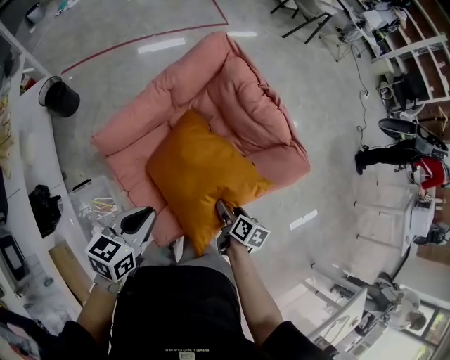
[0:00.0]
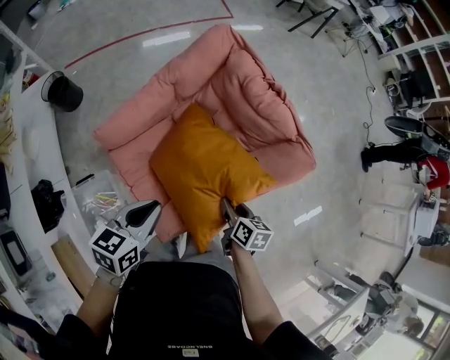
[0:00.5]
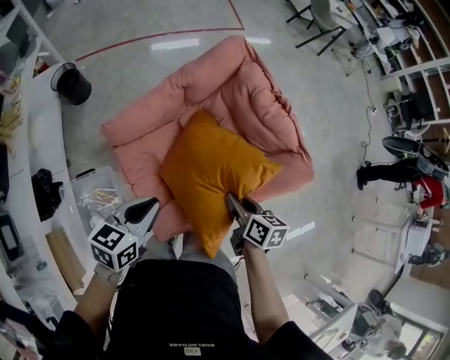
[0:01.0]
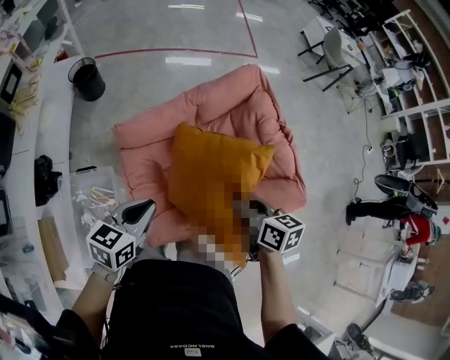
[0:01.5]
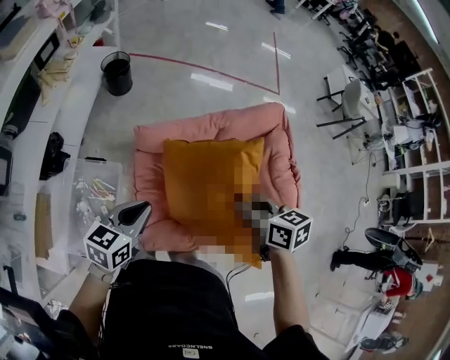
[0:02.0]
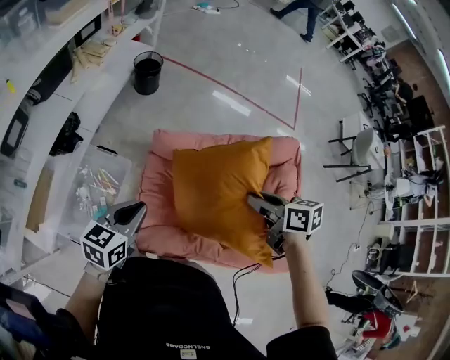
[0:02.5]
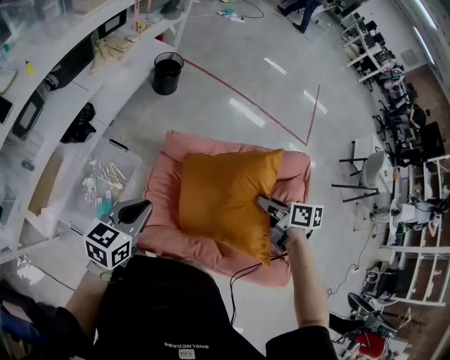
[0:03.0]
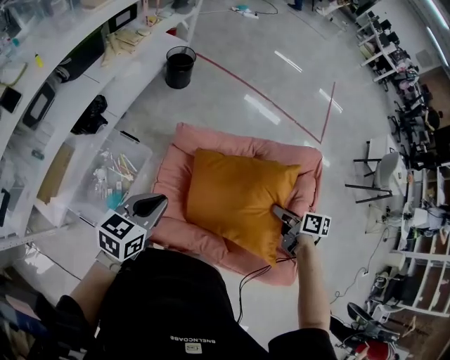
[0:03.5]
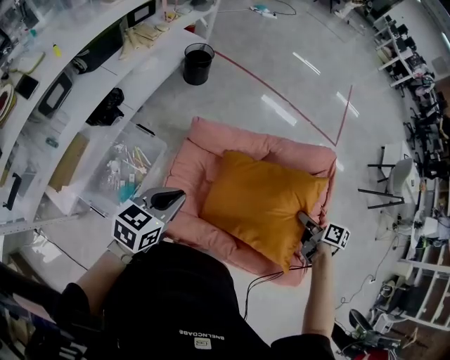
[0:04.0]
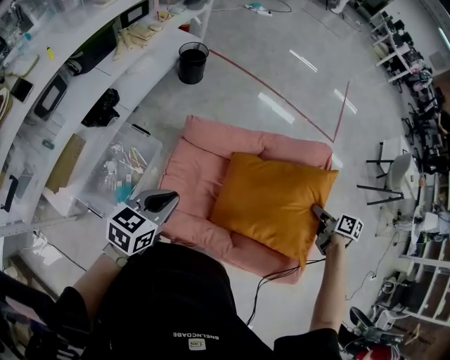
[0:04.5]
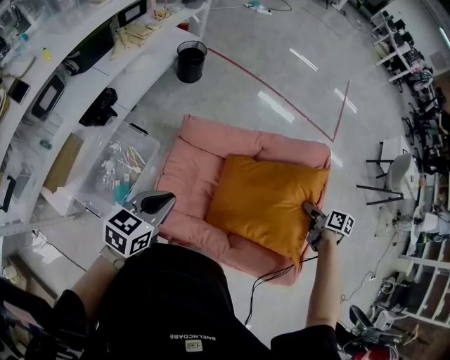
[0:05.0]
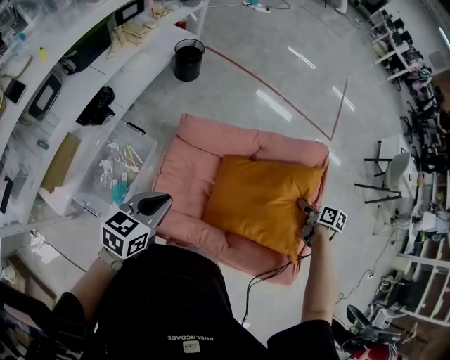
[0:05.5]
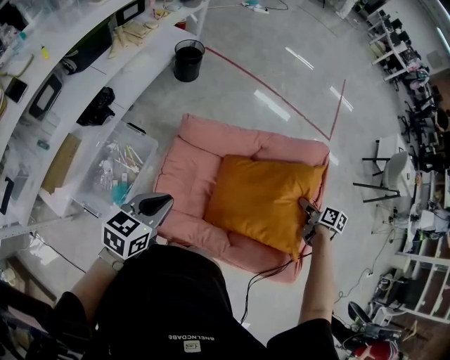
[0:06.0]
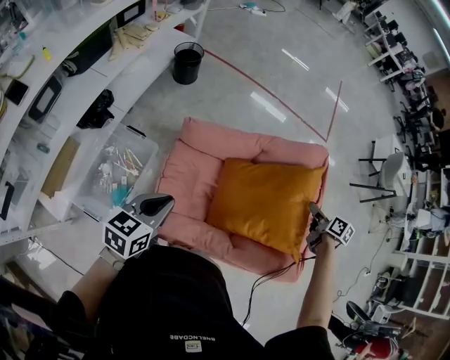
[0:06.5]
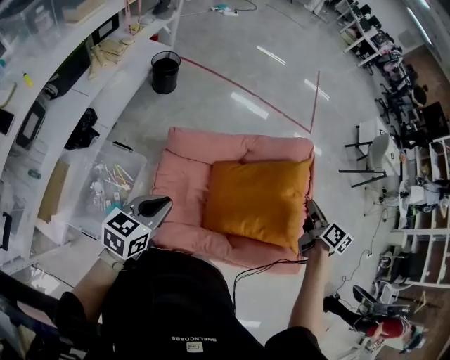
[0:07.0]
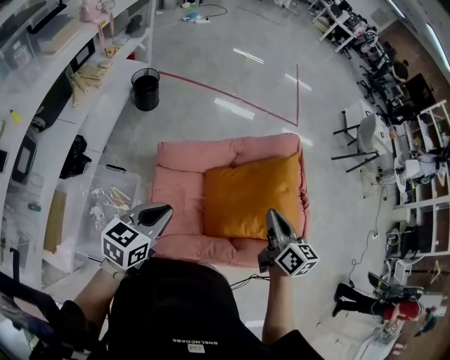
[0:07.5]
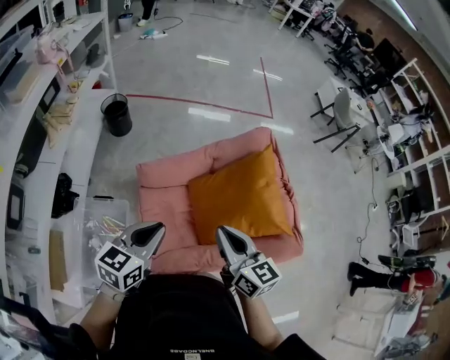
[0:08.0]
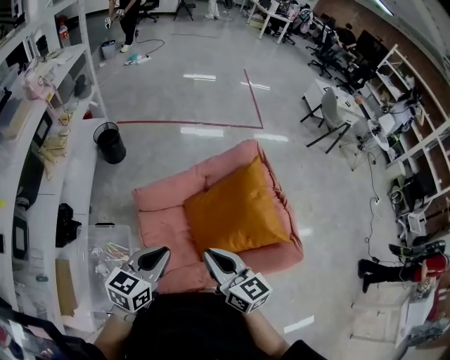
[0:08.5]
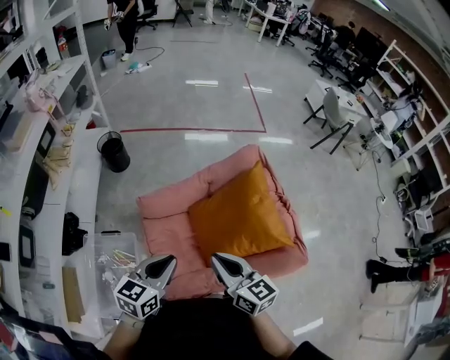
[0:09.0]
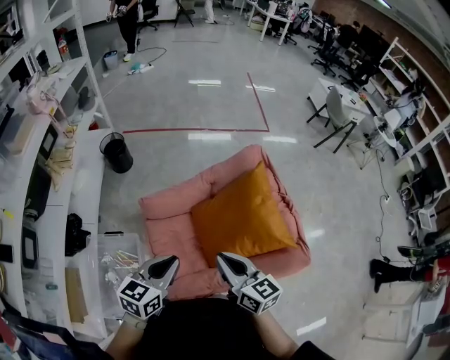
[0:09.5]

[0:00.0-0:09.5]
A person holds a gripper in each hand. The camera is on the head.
0:00.0 to 0:02.0: The left gripper changes place by approximately 10 cm, and changes its angle by roughly 30 degrees; the right gripper heads upward, covering approximately 25 cm, rolls counterclockwise, seen from behind, by about 50 degrees, and closes.
0:02.0 to 0:04.0: The right gripper shifts roughly 25 cm to the right and downward, and changes its angle by approximately 20 degrees.
0:04.0 to 0:05.5: The right gripper shifts roughly 5 cm to the right.
0:05.5 to 0:07.5: The right gripper is displaced to the left, upward and backward by about 30 cm, rotates roughly 40 degrees, and opens, then closes again; the left gripper shifts by roughly 5 cm.
0:07.5 to 0:09.5: The left gripper travels to the right by roughly 10 cm. Meanwhile the right gripper moves backward and to the left, some 10 cm.

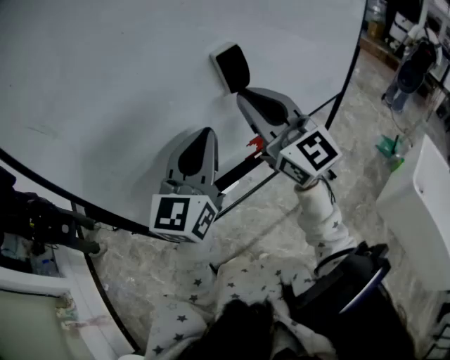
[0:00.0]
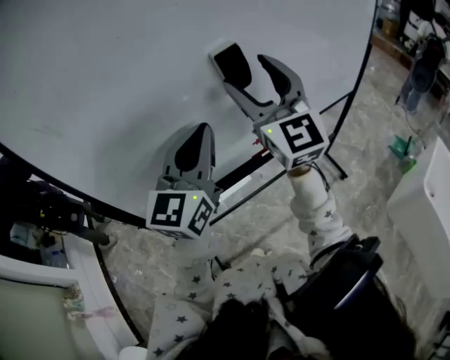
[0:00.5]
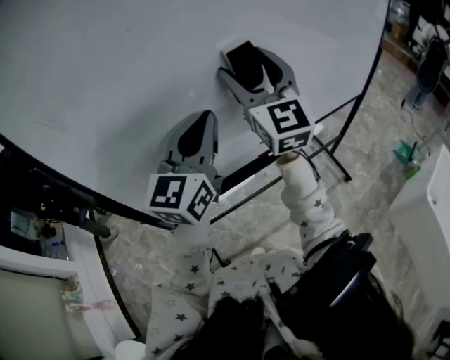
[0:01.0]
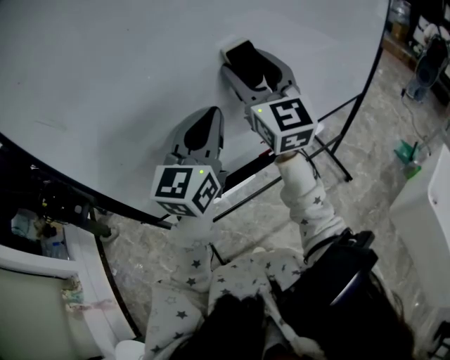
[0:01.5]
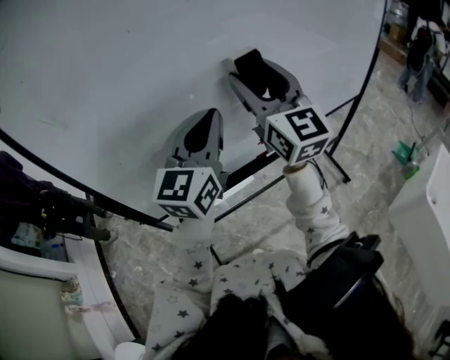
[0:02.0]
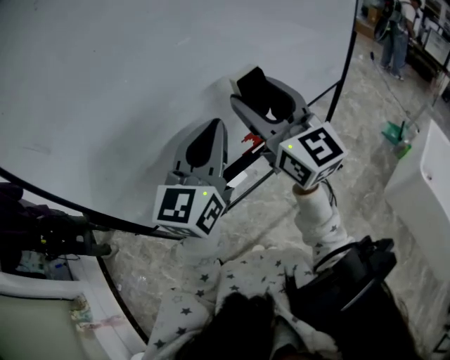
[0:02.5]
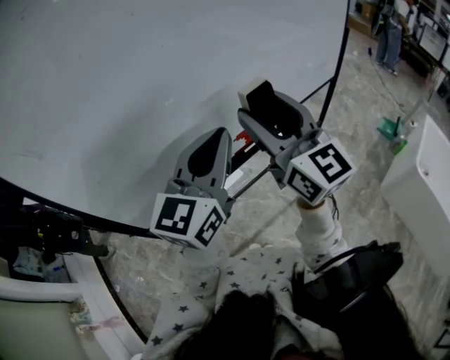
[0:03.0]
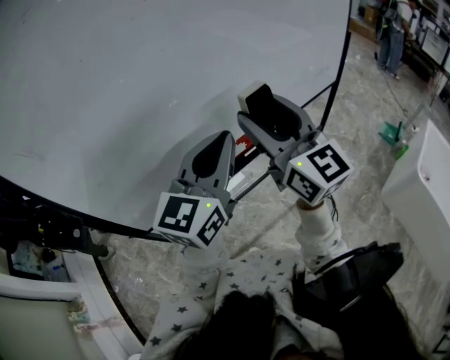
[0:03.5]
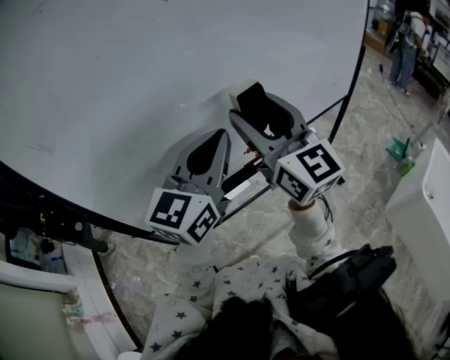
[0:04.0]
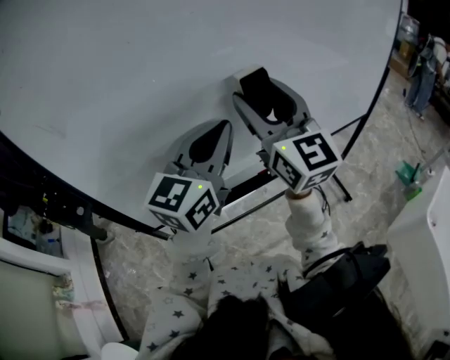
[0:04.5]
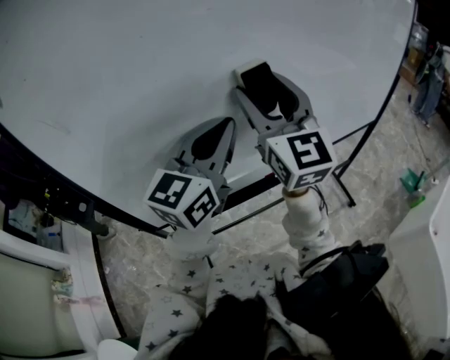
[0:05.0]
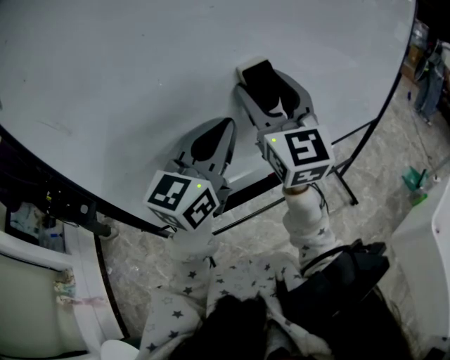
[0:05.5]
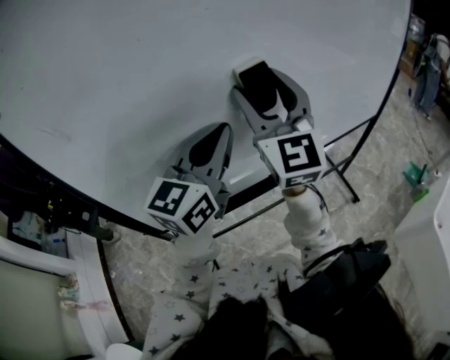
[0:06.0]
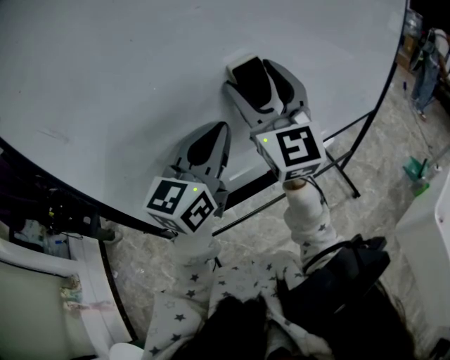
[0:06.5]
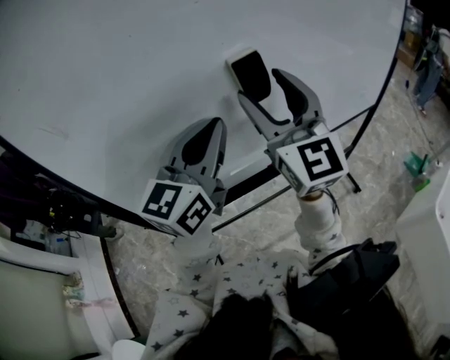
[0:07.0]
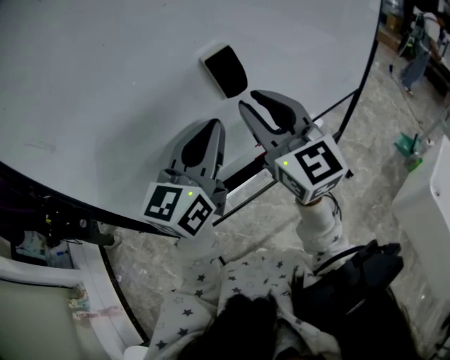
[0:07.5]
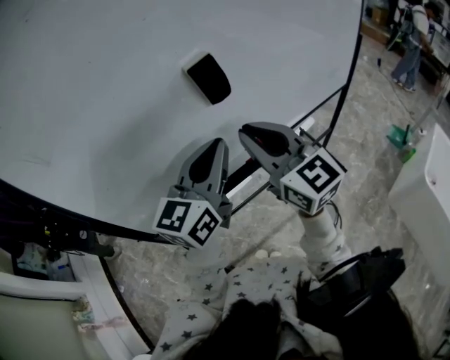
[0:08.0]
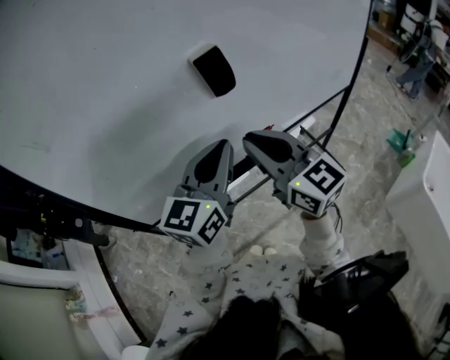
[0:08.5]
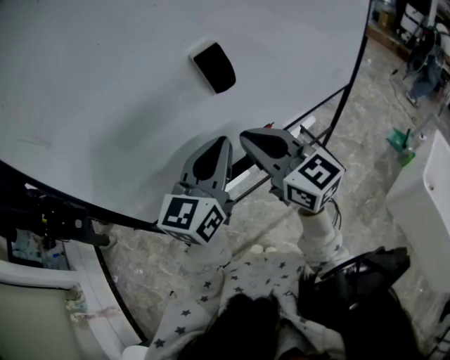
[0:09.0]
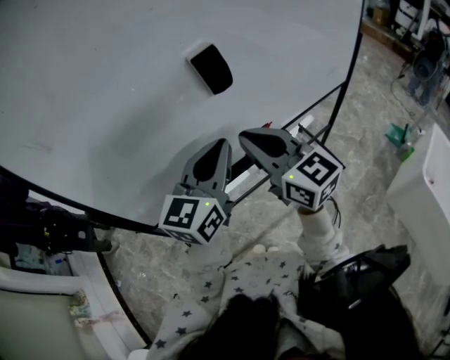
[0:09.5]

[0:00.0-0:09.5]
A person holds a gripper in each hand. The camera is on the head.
0:00.0 to 0:02.0: The right gripper opens its fingers.
0:02.0 to 0:04.0: The left gripper moves to the right, some 5 cm.
0:04.0 to 0:05.5: The left gripper shifts some 10 cm to the left and forward. The right gripper goes roughly 10 cm forward and to the left.
0:05.5 to 0:07.5: The right gripper ends up roughly 5 cm from where it was, and closes up.
0:07.5 to 0:09.5: Both grippers travel together downward, roughly 5 cm.

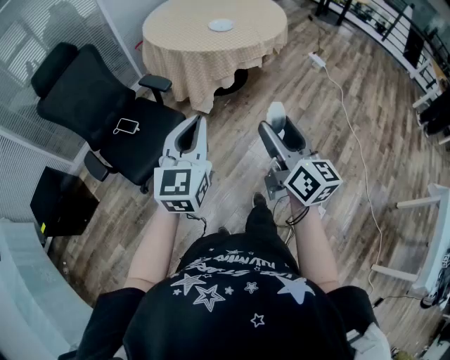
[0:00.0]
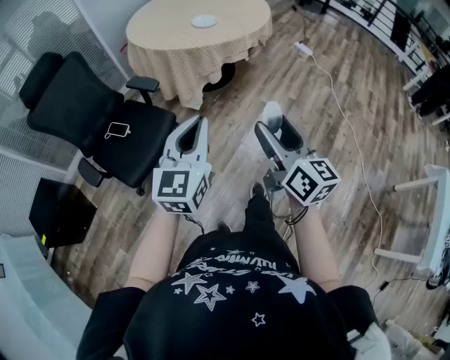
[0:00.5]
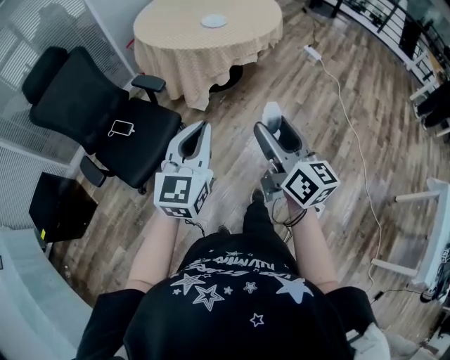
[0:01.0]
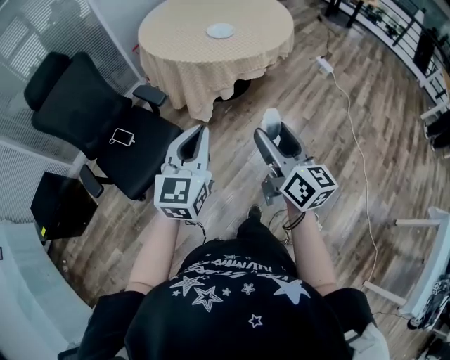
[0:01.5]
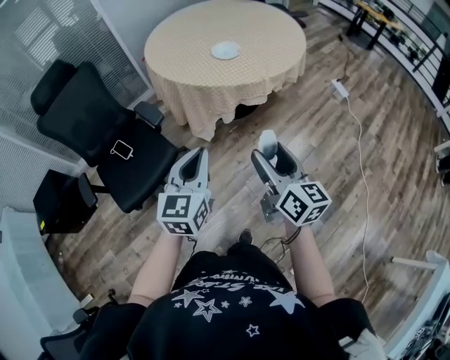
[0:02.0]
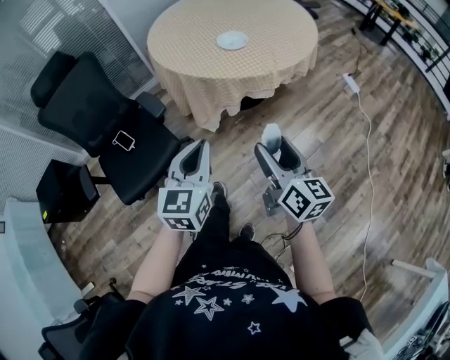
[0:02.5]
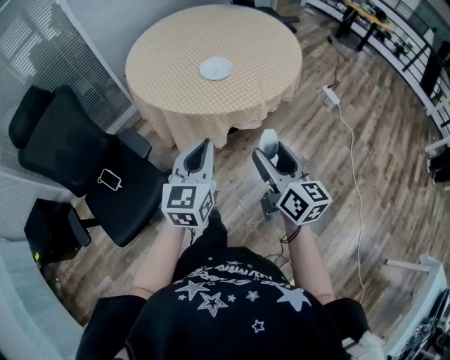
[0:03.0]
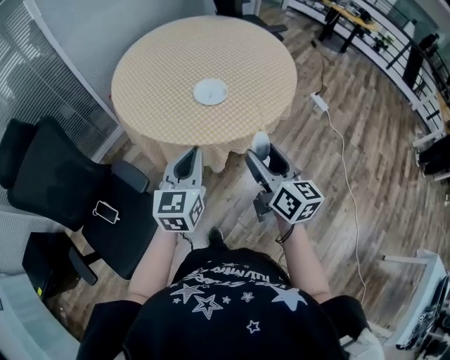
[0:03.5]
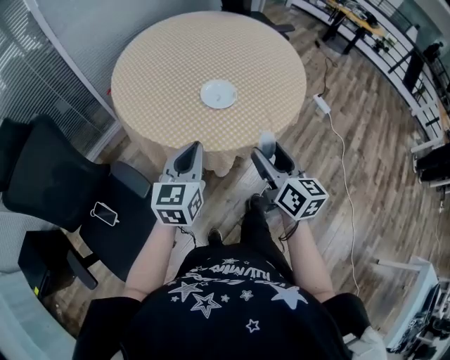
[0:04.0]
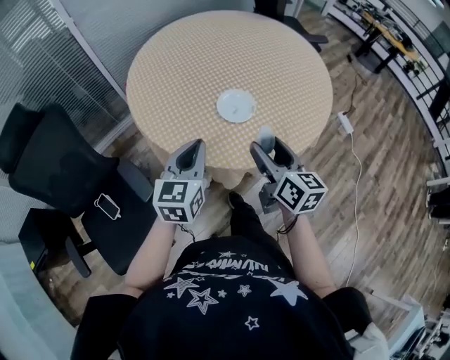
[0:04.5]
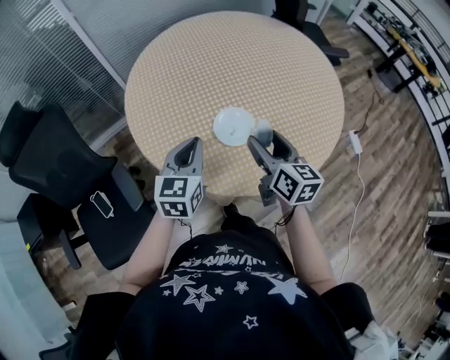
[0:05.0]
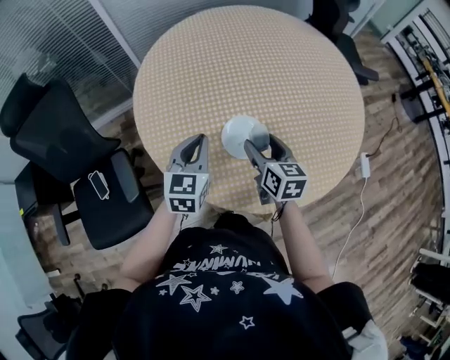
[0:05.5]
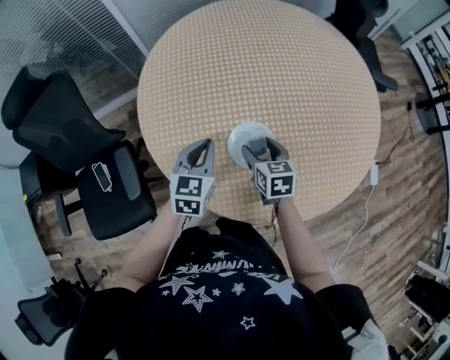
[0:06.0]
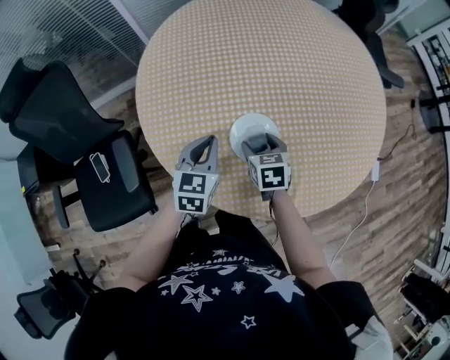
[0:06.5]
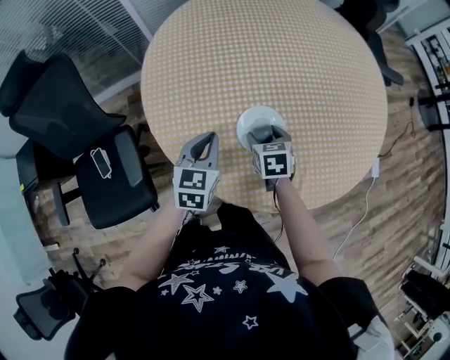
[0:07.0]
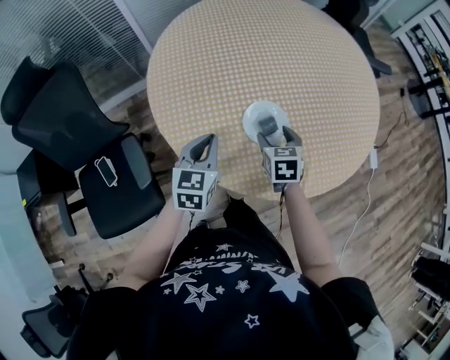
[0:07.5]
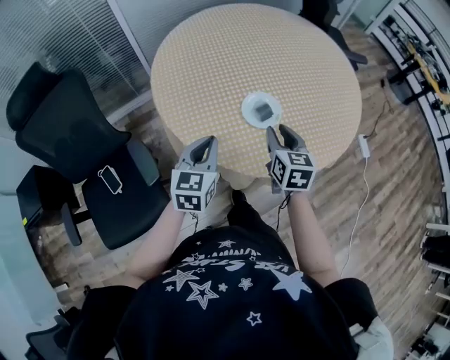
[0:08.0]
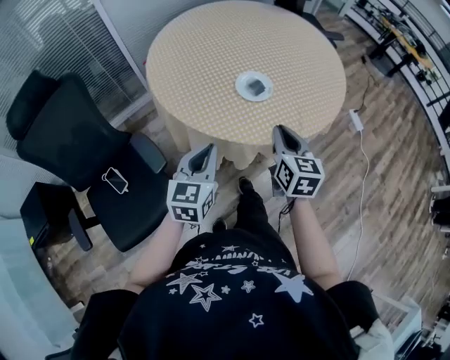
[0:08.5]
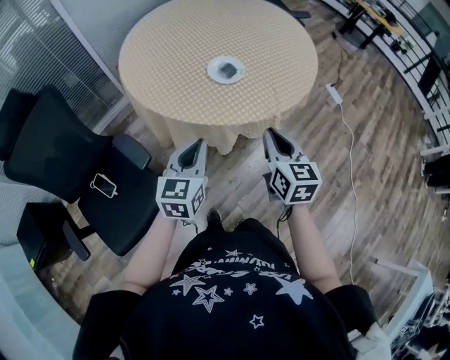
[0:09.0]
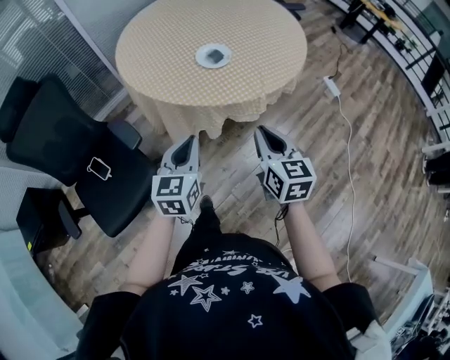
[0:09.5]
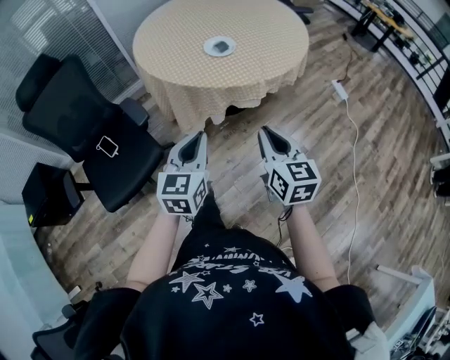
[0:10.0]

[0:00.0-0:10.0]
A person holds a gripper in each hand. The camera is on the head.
0:00.0 to 0:02.0: The grippers both shift forward and to the right by some 25 cm.
0:02.0 to 0:04.0: Both grippers travel together forward, some 35 cm.
0:04.0 to 0:06.0: The left gripper shifts by roughly 30 cm, and rotates approximately 30 degrees; the right gripper shifts by about 40 cm, and turns by about 50 degrees.
0:06.0 to 0:08.0: The left gripper goes about 15 cm backward and to the left. Meanwhile the right gripper heads backward and upward, covering some 15 cm, turns by about 20 degrees, and closes its fingers.
0:08.0 to 0:10.0: The grippers both shift backward by some 40 cm. The right gripper closes its fingers.
